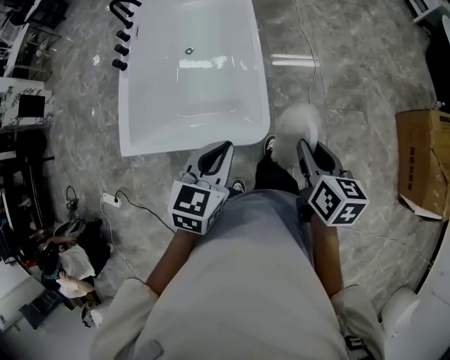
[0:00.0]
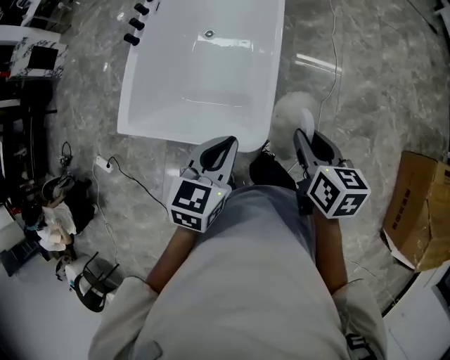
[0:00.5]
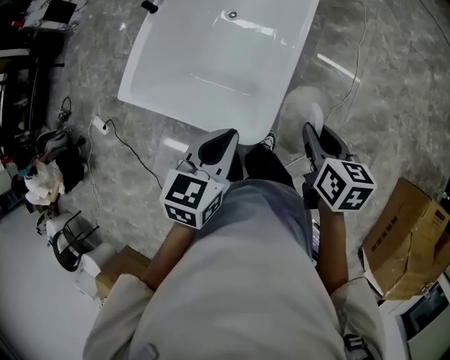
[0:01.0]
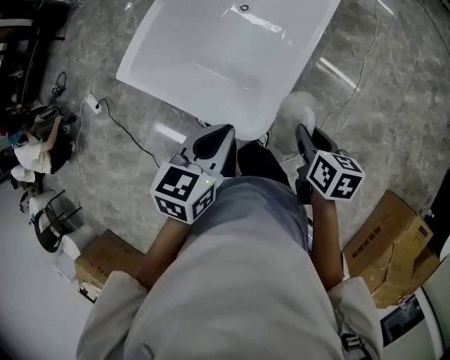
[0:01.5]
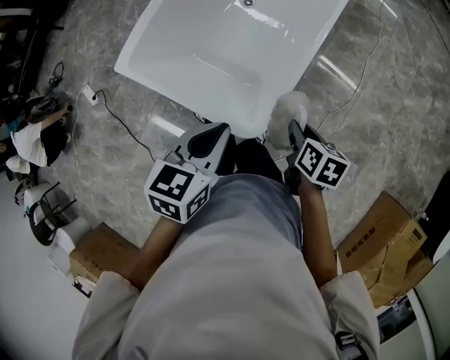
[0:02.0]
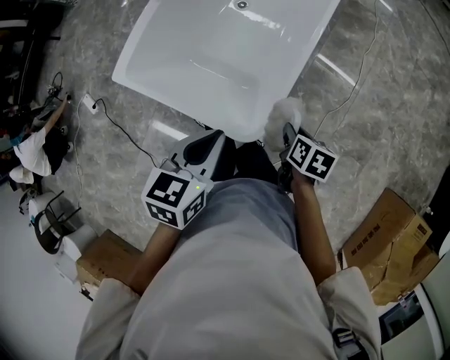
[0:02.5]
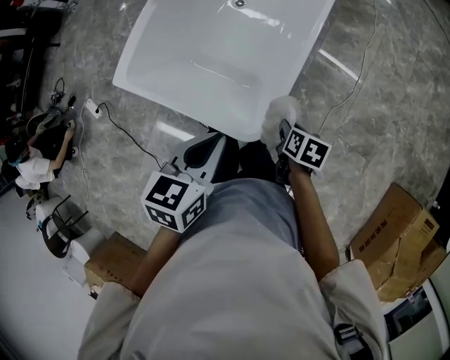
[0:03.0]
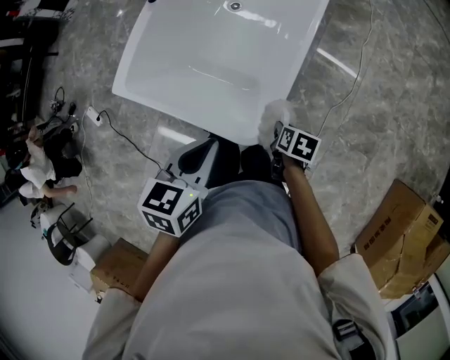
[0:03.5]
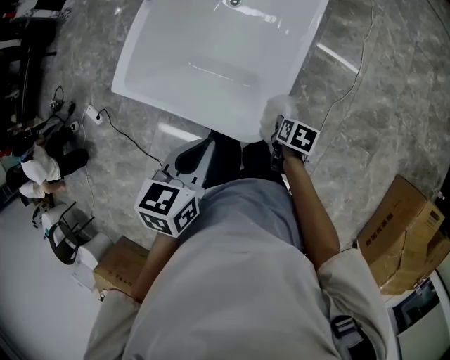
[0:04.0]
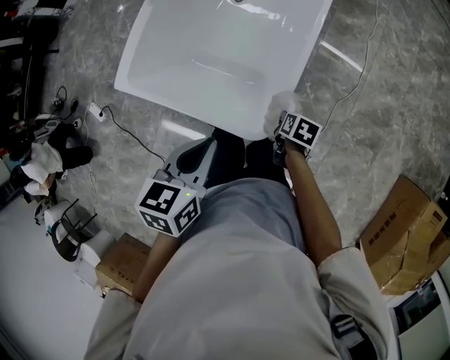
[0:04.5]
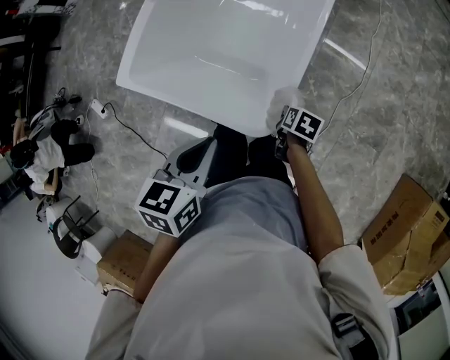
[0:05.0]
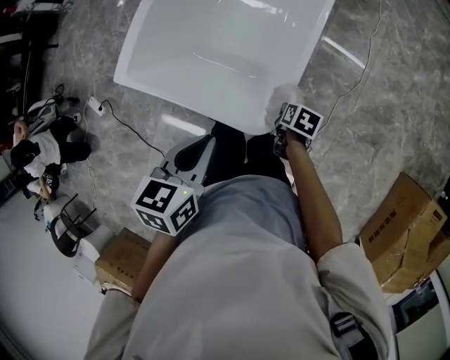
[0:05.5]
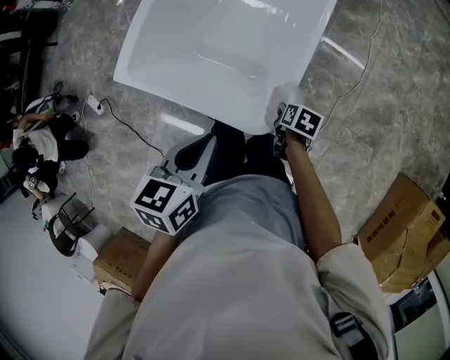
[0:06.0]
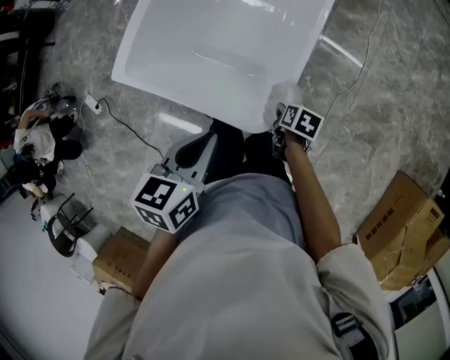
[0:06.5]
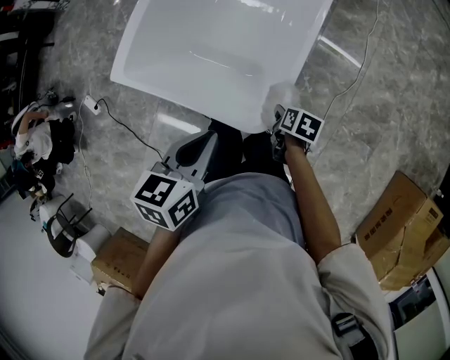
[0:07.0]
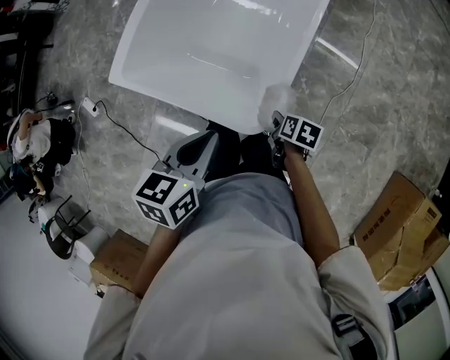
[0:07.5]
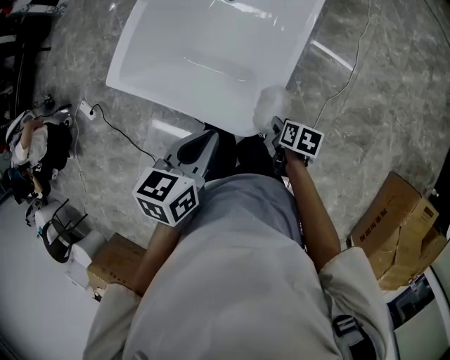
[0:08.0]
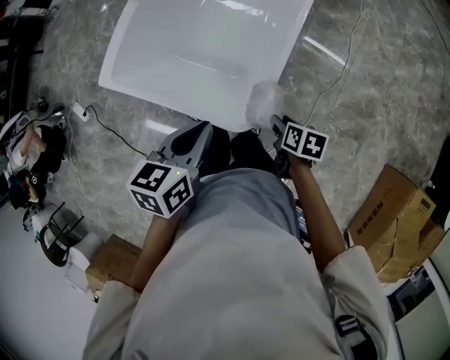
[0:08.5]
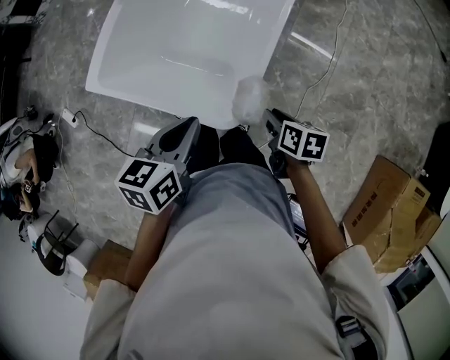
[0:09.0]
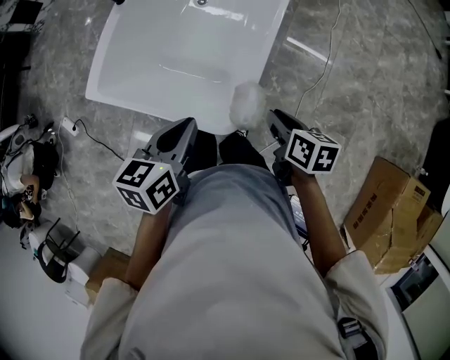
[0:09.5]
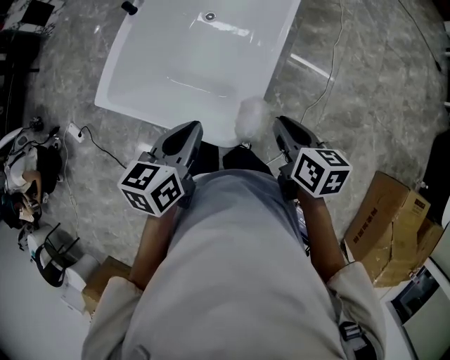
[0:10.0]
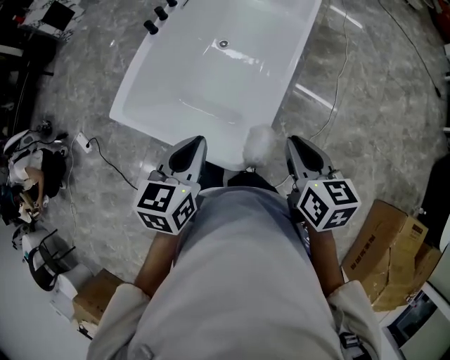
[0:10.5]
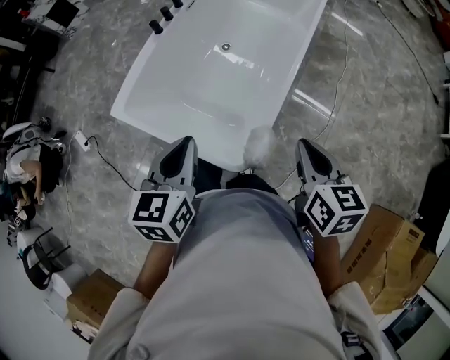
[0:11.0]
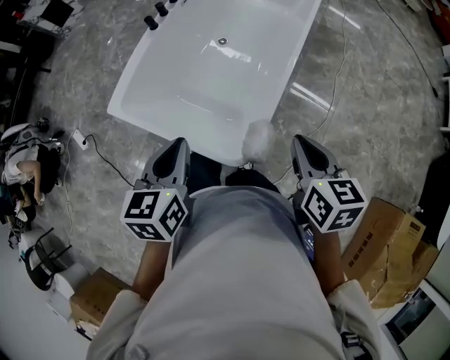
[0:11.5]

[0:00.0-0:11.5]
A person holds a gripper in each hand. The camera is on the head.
0:00.0 to 0:02.0: The right gripper shifts by some 25 cm, and changes its angle by about 30 degrees; the left gripper moves about 10 cm, and swivels roughly 30 degrees.
0:02.0 to 0:04.0: The right gripper heads downward, covering about 15 cm.
0:04.0 to 0:07.5: The grippers make only small movements.
0:07.5 to 0:09.5: The right gripper moves upward, approximately 15 cm, and rotates some 20 degrees.
0:09.5 to 0:11.5: The right gripper travels upward by about 15 cm, and turns by approximately 30 degrees, while the left gripper is displaced upward and to the left by roughly 10 cm, and turns by approximately 20 degrees.

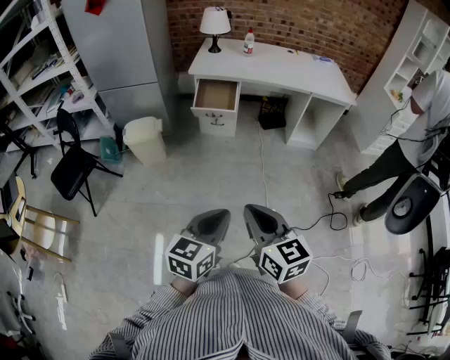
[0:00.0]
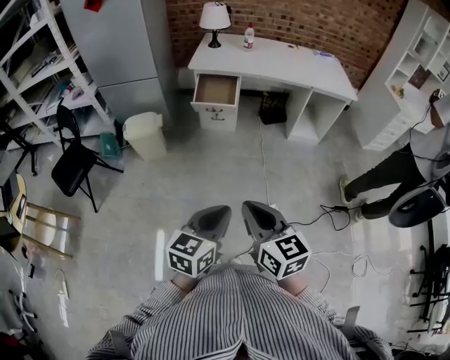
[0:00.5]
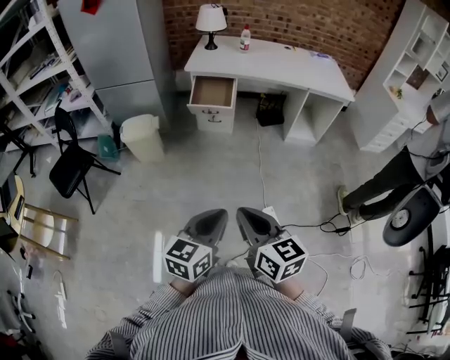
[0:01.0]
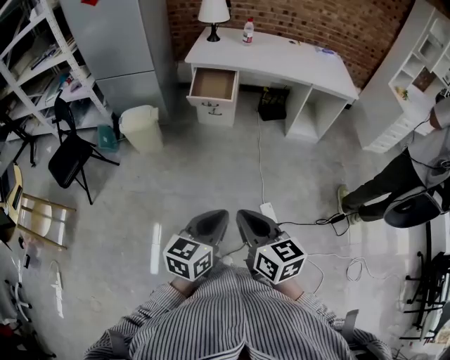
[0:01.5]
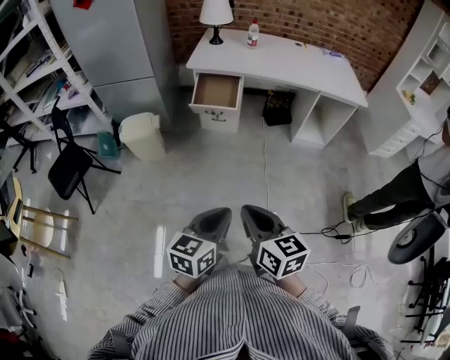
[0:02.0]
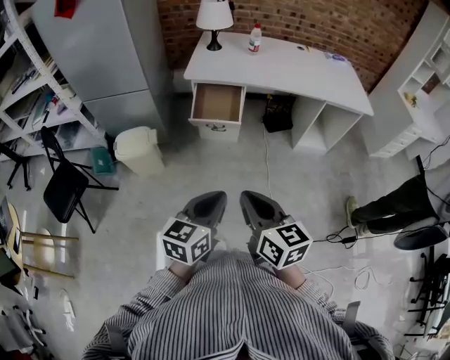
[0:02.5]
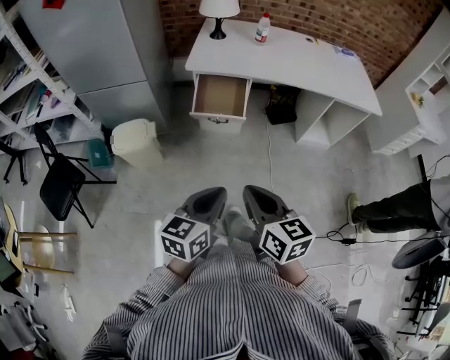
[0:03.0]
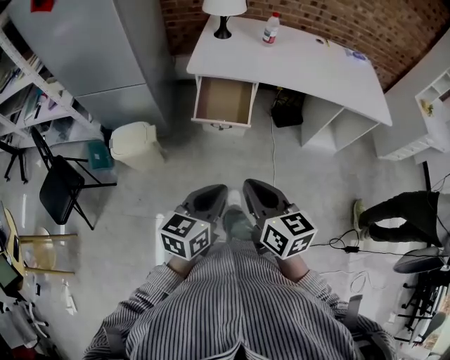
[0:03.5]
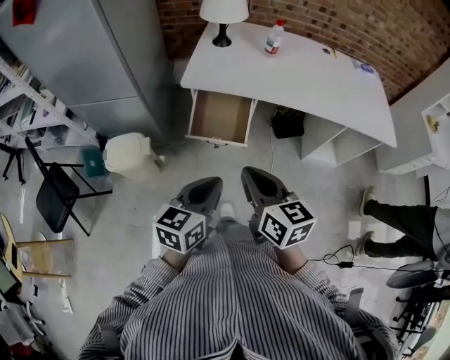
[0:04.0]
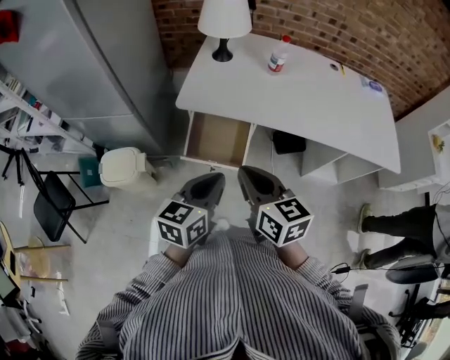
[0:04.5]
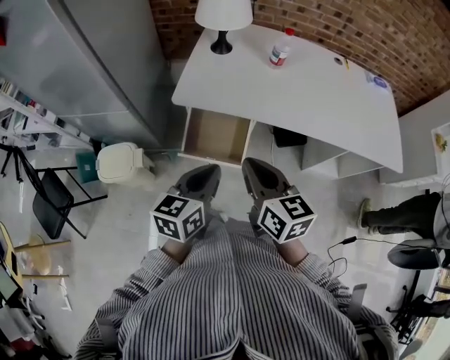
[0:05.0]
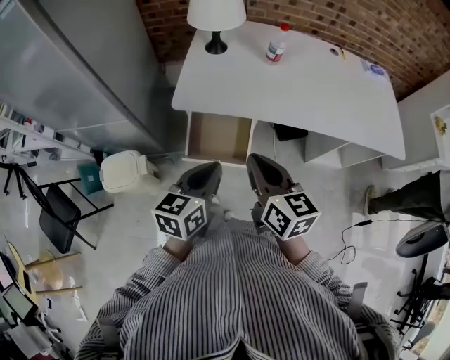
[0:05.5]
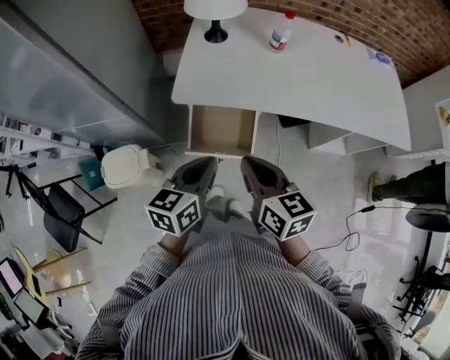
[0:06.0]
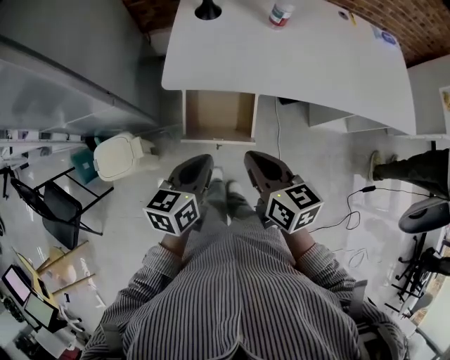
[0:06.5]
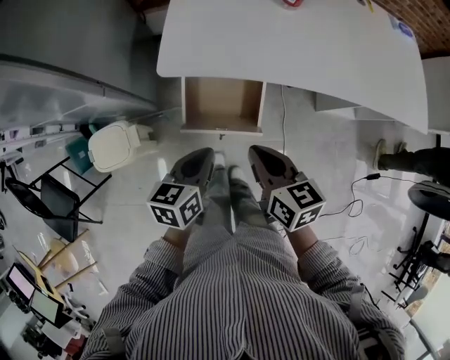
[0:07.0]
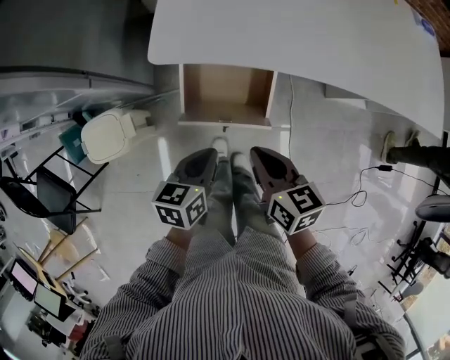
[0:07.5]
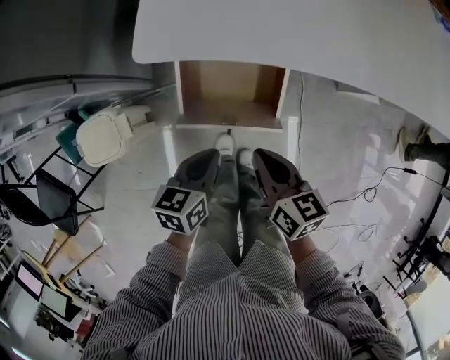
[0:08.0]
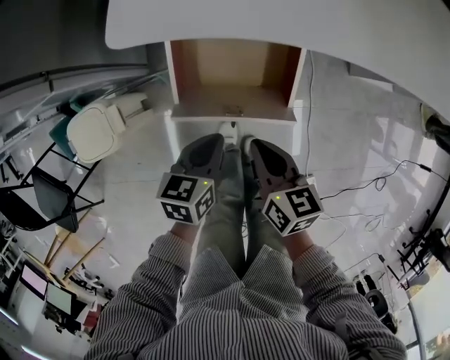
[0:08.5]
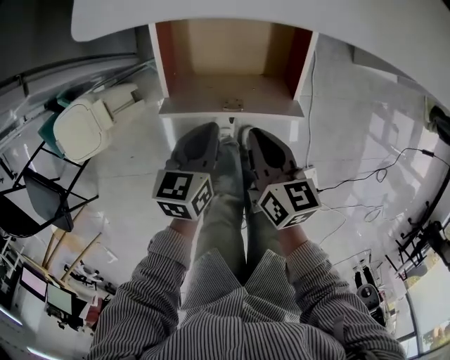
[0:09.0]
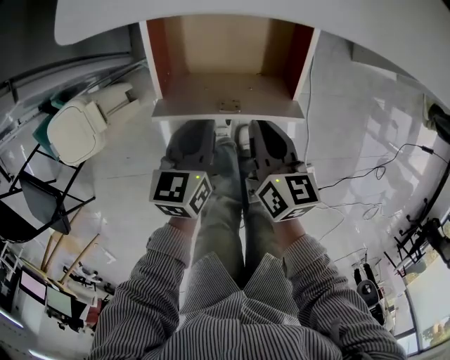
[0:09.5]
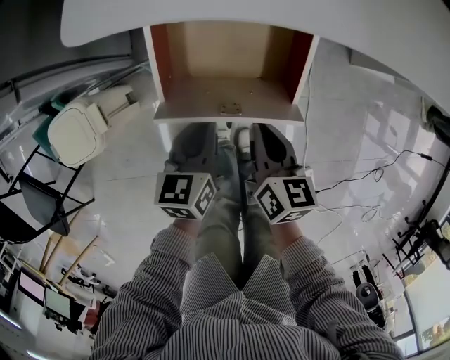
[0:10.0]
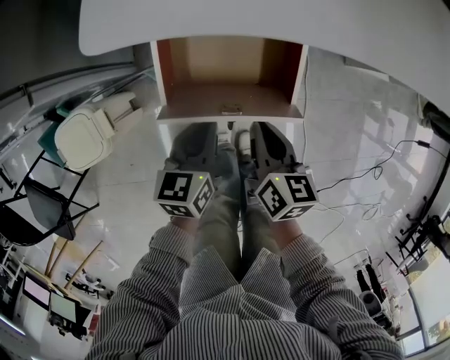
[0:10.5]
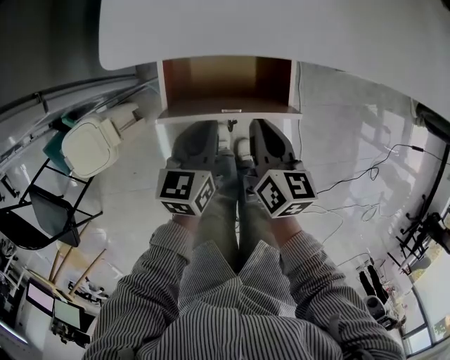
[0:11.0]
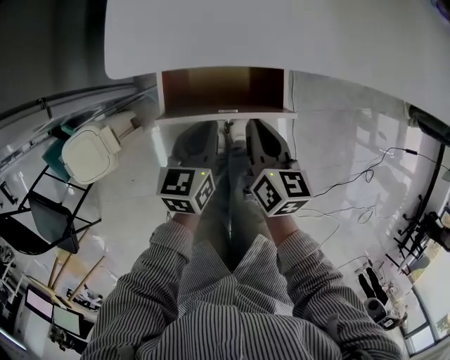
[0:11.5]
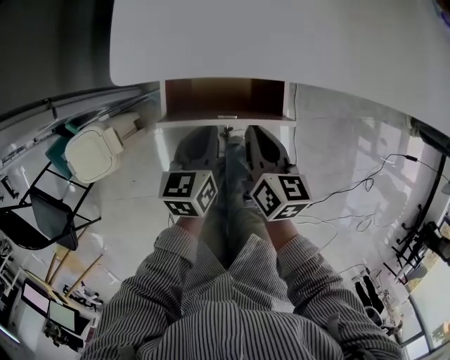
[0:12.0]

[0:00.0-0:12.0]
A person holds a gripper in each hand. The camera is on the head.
0:00.0 to 0:02.0: The left gripper is displaced forward by roughly 10 cm. The right gripper travels forward and downward by approximately 10 cm.
0:02.0 to 0:04.0: The two grippers travel together, forward, about 50 cm.
0:04.0 to 0:06.0: Both grippers move forward, approximately 20 cm.
0:06.0 to 0:08.0: The grippers both shift downward by some 30 cm. The left gripper turns by some 20 degrees.
0:08.0 to 0:10.0: Both grippers travel together downward, some 15 cm.
0:10.0 to 0:12.0: The two grippers go approximately 10 cm upward and forward.

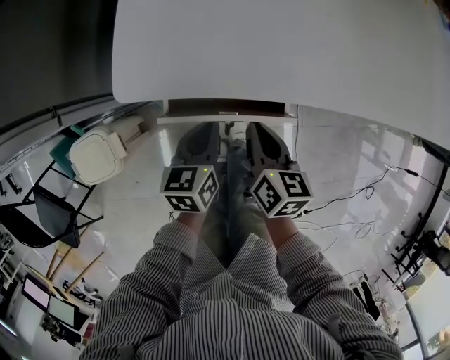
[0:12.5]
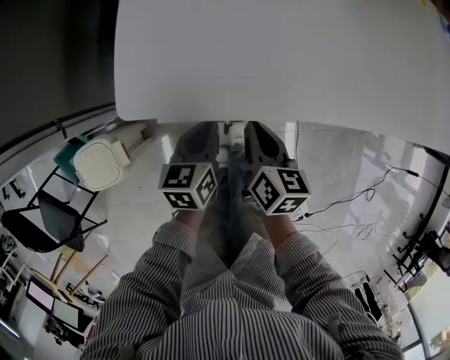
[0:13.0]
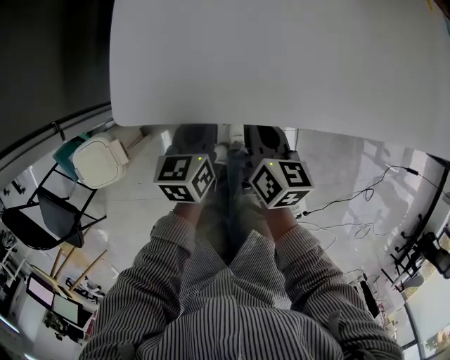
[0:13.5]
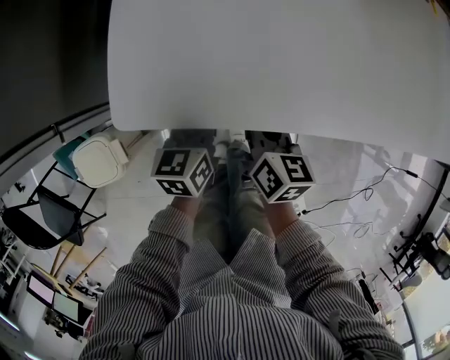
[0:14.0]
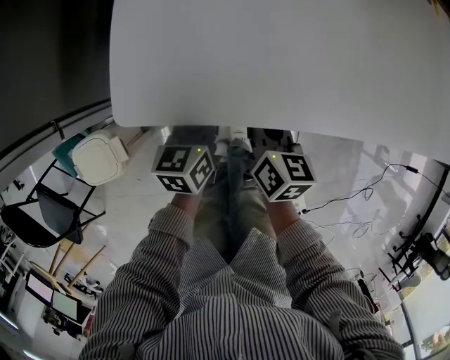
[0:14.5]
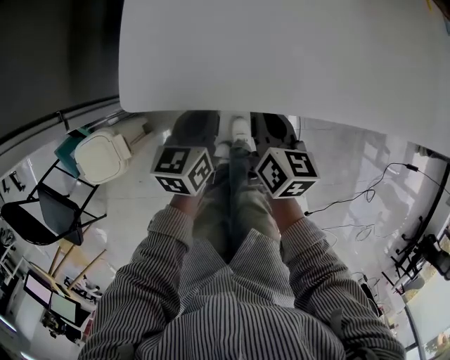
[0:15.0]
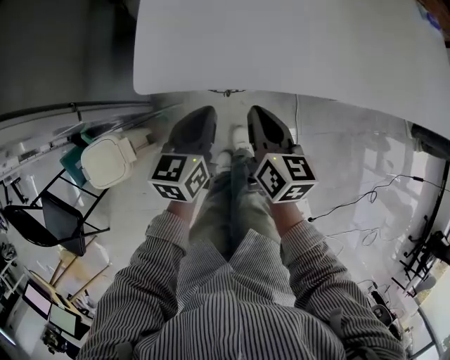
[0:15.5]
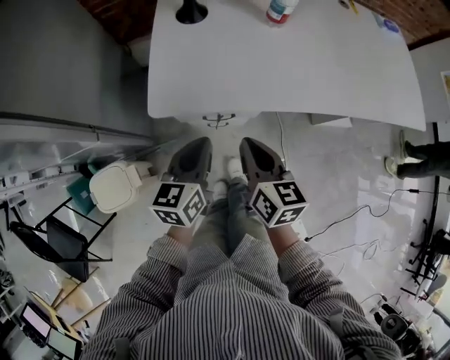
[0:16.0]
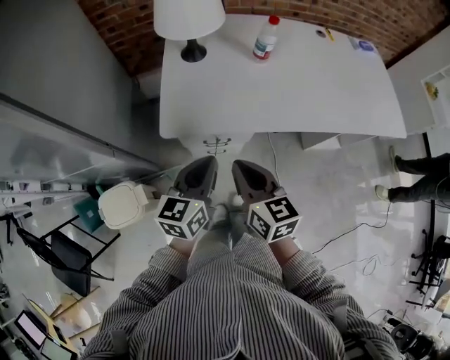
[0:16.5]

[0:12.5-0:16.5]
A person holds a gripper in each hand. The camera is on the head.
0:12.5 to 0:14.5: Both grippers travel together forward, about 10 cm.
0:14.5 to 0:16.5: Both grippers move upward and backward, roughly 35 cm. The right gripper swivels some 20 degrees. Meanwhile the left gripper rotates about 20 degrees.
